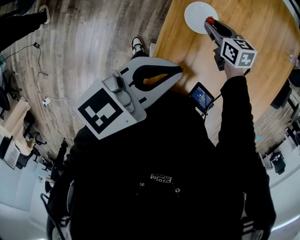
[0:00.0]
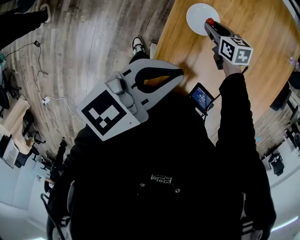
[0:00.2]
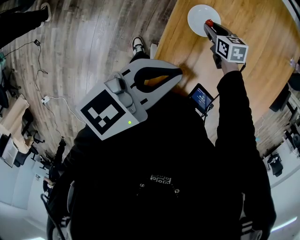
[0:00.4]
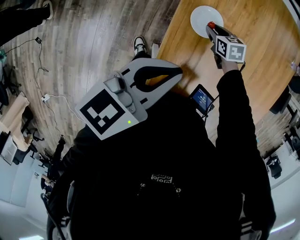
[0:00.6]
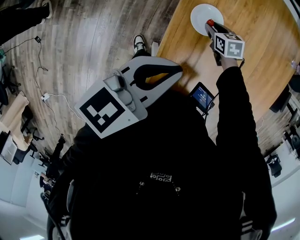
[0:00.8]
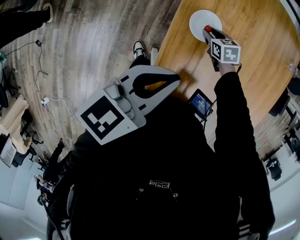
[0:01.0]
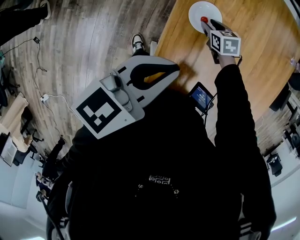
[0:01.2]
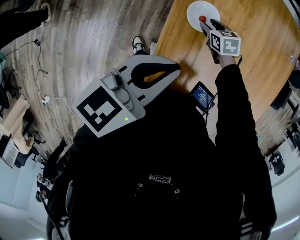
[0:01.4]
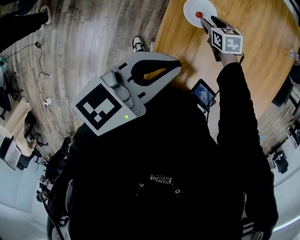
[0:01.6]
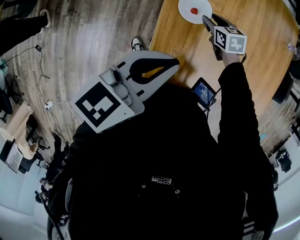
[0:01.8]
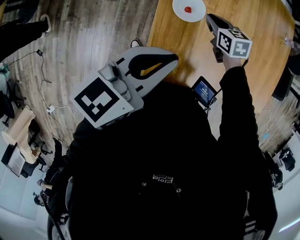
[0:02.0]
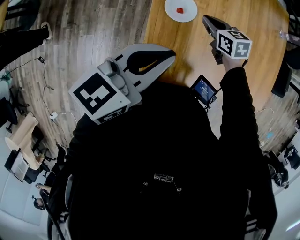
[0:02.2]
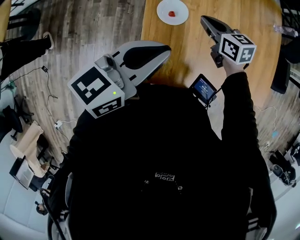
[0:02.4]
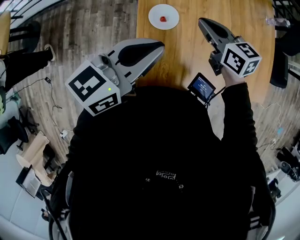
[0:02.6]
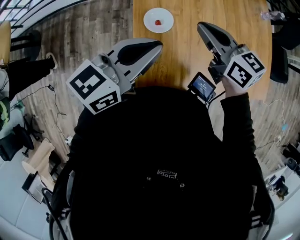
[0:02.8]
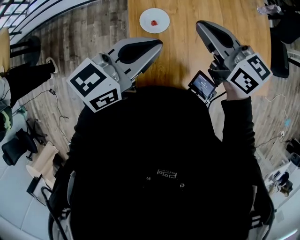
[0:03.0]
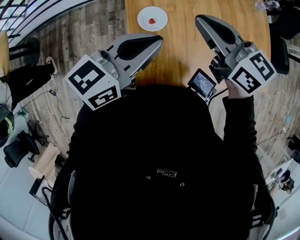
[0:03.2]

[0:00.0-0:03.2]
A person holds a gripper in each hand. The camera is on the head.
0:00.0 to 0:01.6: The right gripper is displaced downward by about 5 cm.
0:01.6 to 0:03.2: The left gripper moves some 5 cm, while the right gripper goes roughly 30 cm upward, tilts its fingers roughly 50 degrees upward, and closes its fingers.

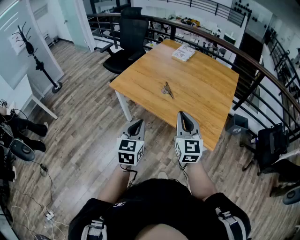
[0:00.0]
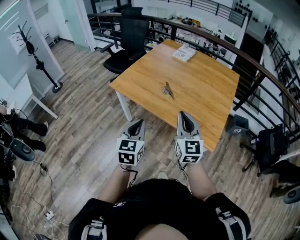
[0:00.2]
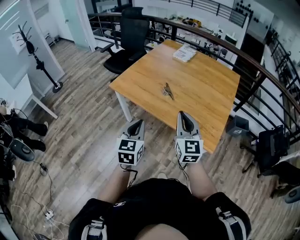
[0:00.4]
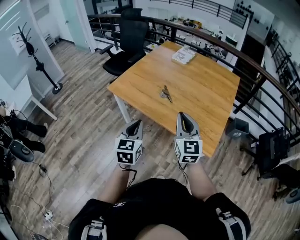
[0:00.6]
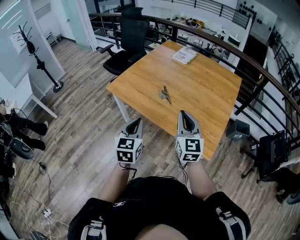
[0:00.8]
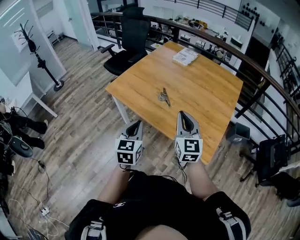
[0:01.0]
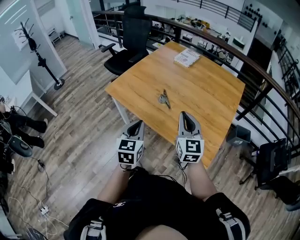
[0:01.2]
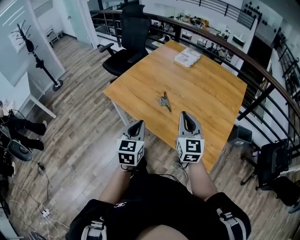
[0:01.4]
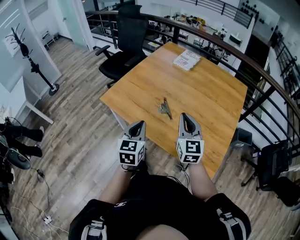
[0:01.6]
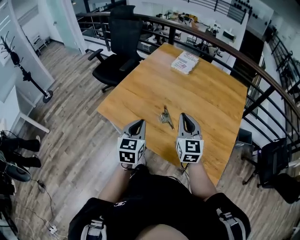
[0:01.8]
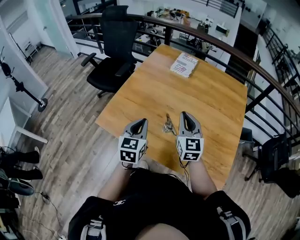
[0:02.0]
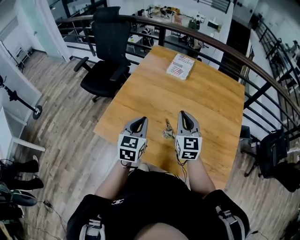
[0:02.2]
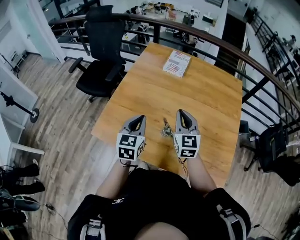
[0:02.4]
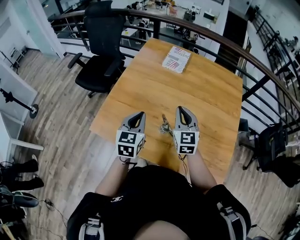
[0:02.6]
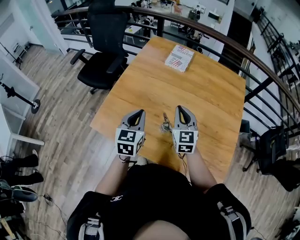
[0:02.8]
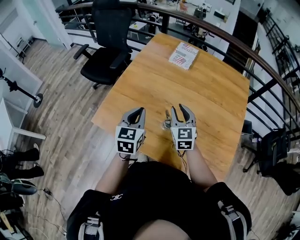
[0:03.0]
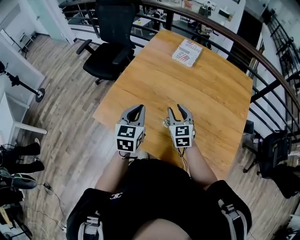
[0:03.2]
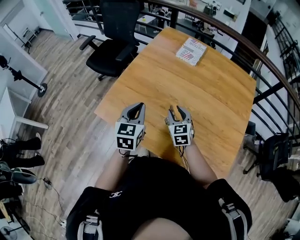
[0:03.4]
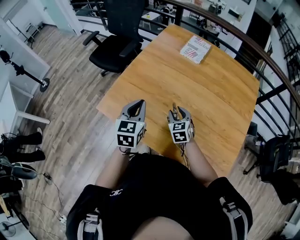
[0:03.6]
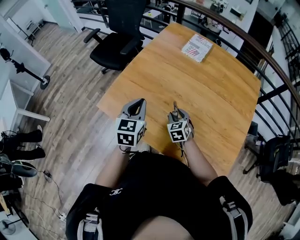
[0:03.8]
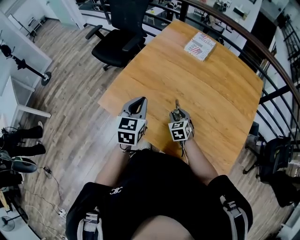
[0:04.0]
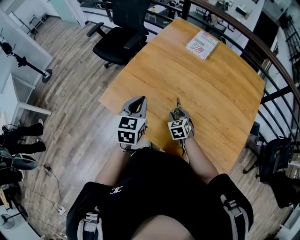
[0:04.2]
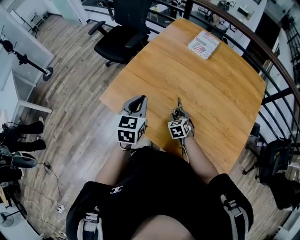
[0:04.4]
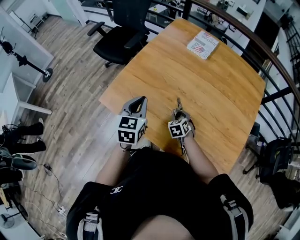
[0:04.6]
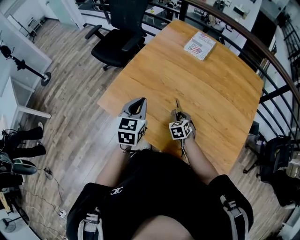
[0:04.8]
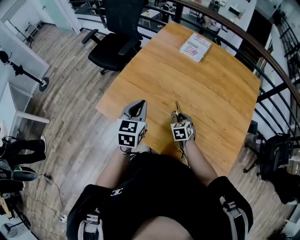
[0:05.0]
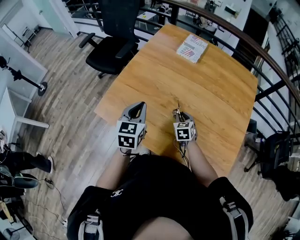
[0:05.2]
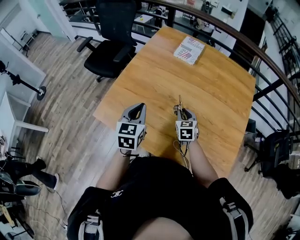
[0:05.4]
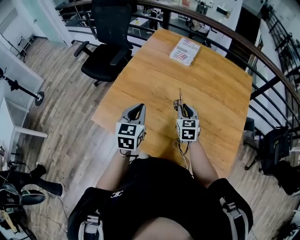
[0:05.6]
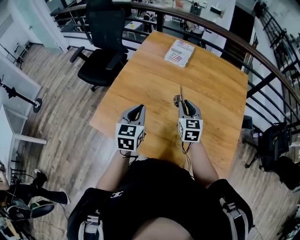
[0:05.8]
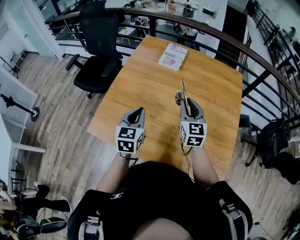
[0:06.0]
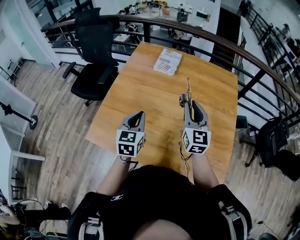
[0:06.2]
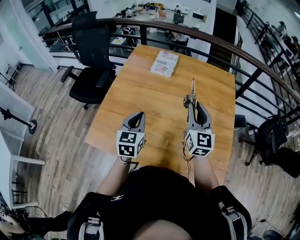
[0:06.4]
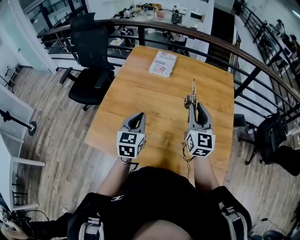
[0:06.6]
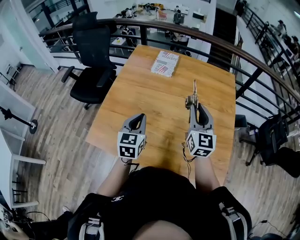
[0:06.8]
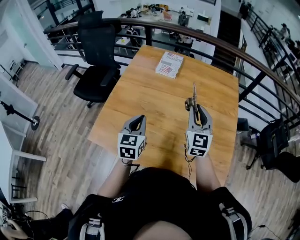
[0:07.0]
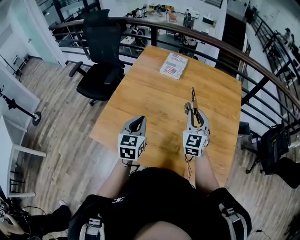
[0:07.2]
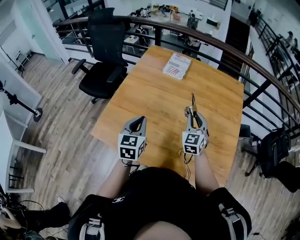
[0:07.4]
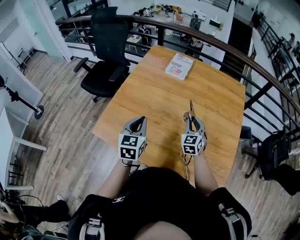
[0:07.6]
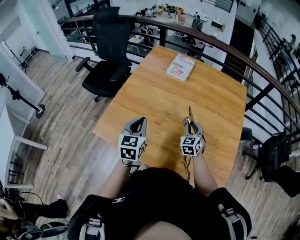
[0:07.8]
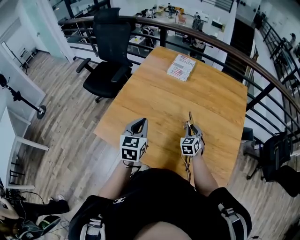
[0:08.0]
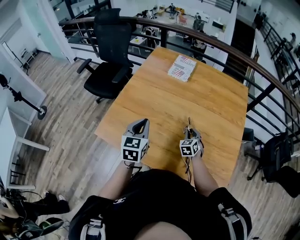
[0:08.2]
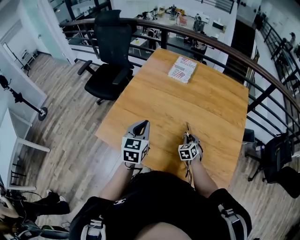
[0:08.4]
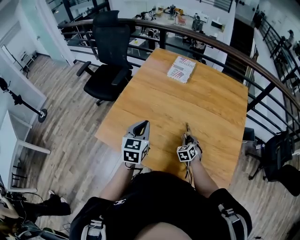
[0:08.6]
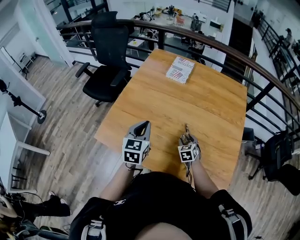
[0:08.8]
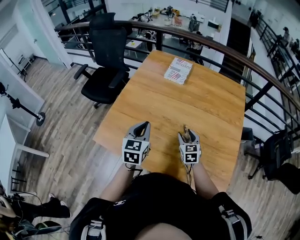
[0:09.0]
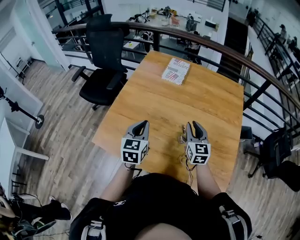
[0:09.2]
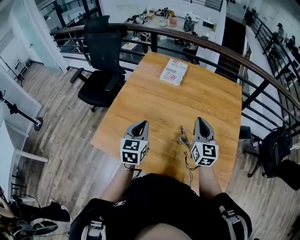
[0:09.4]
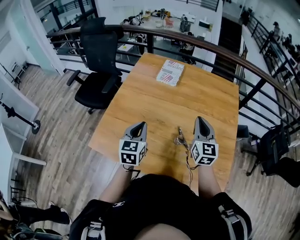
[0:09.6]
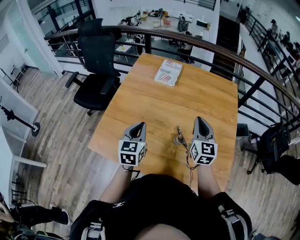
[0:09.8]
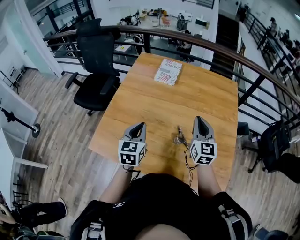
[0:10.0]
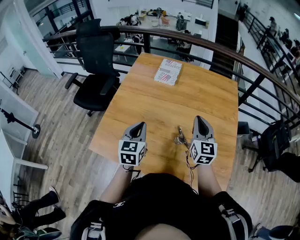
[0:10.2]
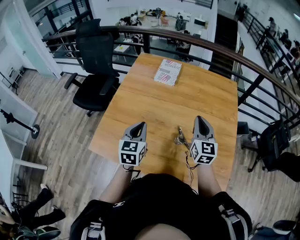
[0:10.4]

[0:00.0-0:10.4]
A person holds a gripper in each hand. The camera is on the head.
0:00.0 to 0:01.4: The grippers both shift forward by approximately 20 cm.
0:01.4 to 0:03.0: The right gripper moves forward and to the left, approximately 35 cm, and opens; the left gripper travels forward by approximately 35 cm.
0:03.0 to 0:04.4: The right gripper travels downward by approximately 20 cm, and angles its fingers downward, by roughly 30 degrees.
0:04.4 to 0:06.0: The left gripper shifts about 10 cm to the right. Meanwhile the right gripper shifts about 30 cm upward and to the right, tilts its fingers approximately 40 degrees upward, and closes its fingers.
0:06.0 to 0:07.4: The right gripper rotates roughly 20 degrees.
0:07.4 to 0:09.0: The right gripper heads downward, covering approximately 10 cm, swivels about 20 degrees, and opens its fingers.
0:09.0 to 0:10.4: The right gripper goes some 20 cm upward, changes its angle by about 30 degrees, and closes.

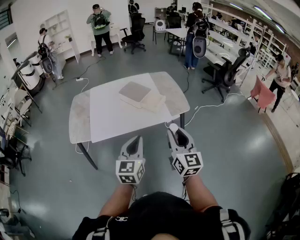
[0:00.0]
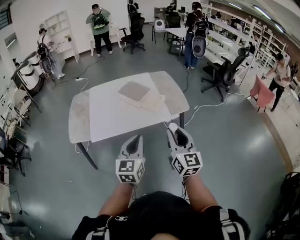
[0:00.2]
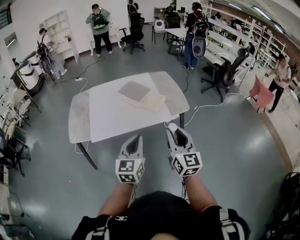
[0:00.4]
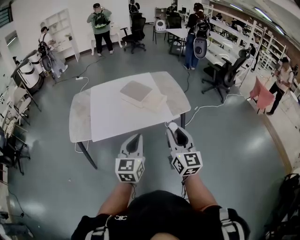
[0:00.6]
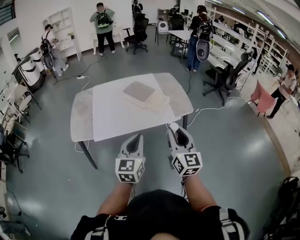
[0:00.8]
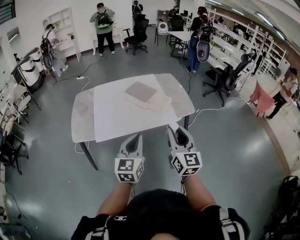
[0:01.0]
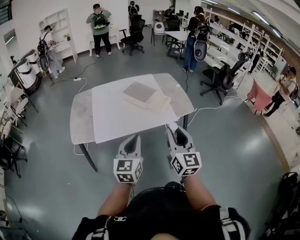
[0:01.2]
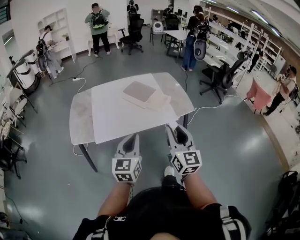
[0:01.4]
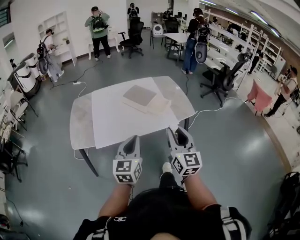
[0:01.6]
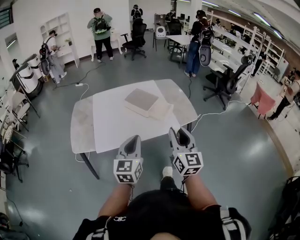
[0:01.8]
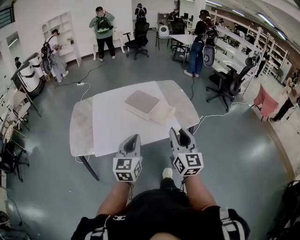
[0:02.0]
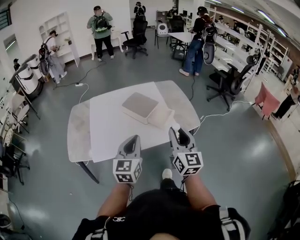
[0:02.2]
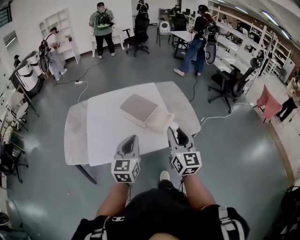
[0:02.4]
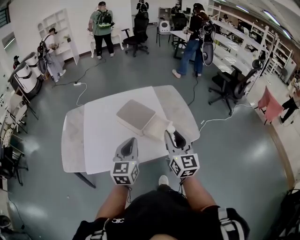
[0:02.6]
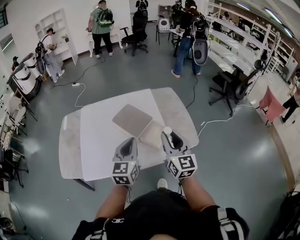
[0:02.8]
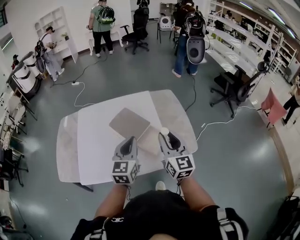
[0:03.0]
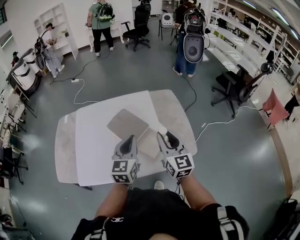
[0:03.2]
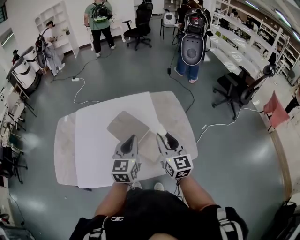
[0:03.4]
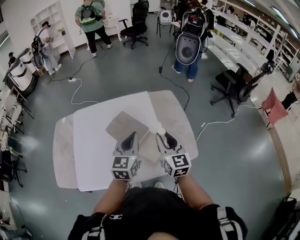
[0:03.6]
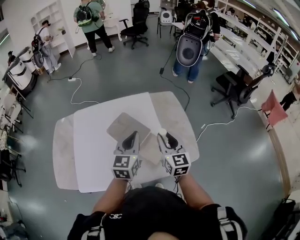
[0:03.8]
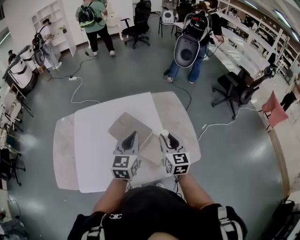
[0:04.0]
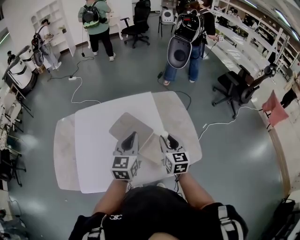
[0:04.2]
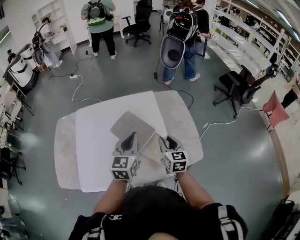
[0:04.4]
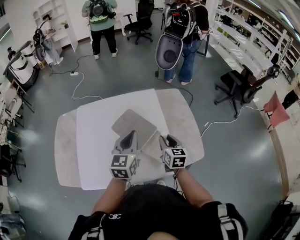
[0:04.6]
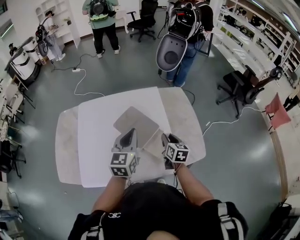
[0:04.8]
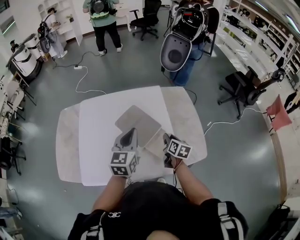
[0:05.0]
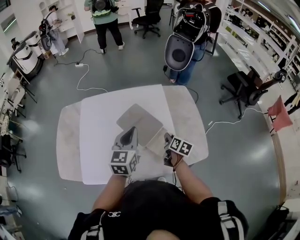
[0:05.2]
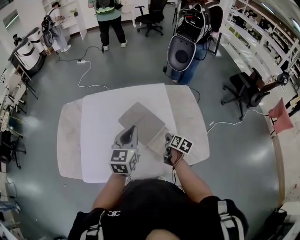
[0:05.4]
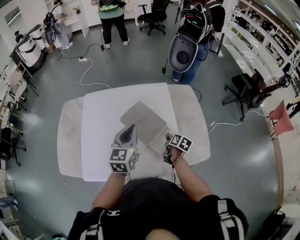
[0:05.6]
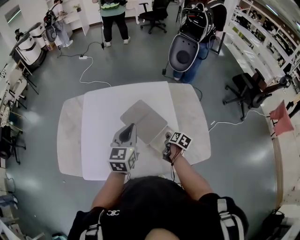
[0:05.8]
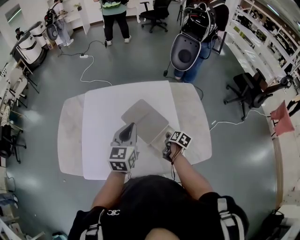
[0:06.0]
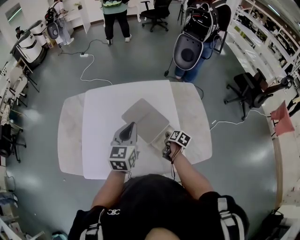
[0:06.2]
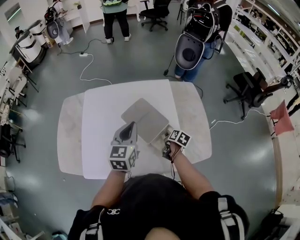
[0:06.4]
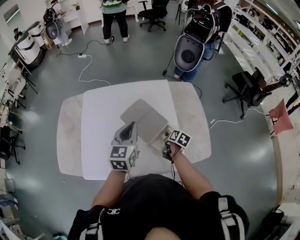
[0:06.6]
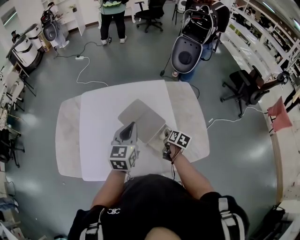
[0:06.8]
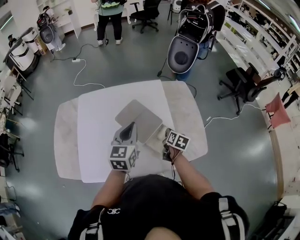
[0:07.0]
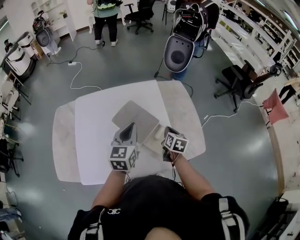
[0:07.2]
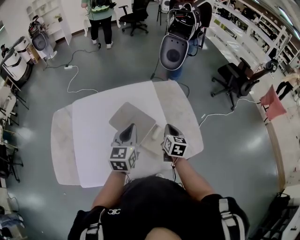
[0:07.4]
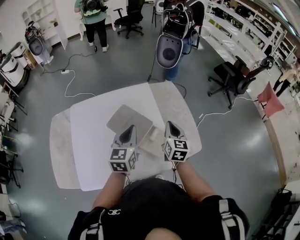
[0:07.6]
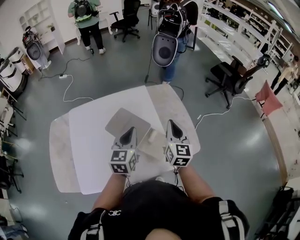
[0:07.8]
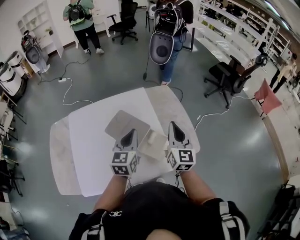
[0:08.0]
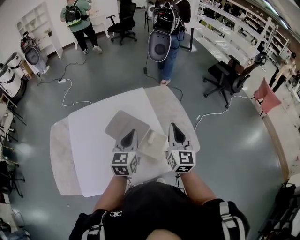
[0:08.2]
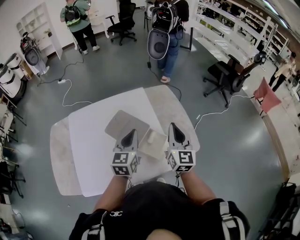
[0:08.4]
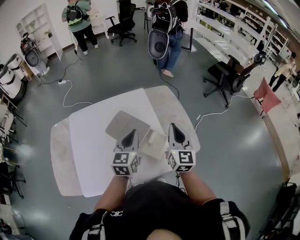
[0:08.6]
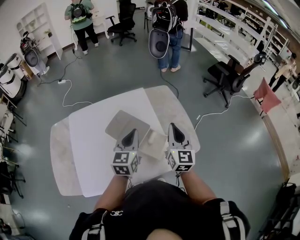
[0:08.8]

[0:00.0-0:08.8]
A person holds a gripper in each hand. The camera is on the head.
0:00.0 to 0:01.4: Both grippers travel together to the left, about 10 cm.
0:01.4 to 0:03.0: The two grippers travel together, forward, about 40 cm.
0:03.0 to 0:04.4: The left gripper travels forward by some 10 cm; the right gripper moves forward and downward, about 15 cm, and swivels roughly 20 degrees.
0:04.4 to 0:05.8: The right gripper travels downward by approximately 20 cm, and swivels approximately 50 degrees, while the left gripper is displaced to the left by about 5 cm.
0:05.8 to 0:07.4: The right gripper shifts approximately 15 cm upward, turns by some 40 degrees, and closes.
0:07.4 to 0:08.8: The right gripper travels upward by some 15 cm, and changes its angle by some 30 degrees.

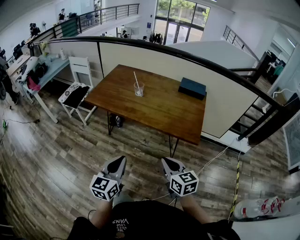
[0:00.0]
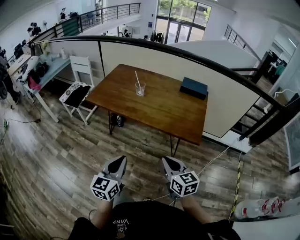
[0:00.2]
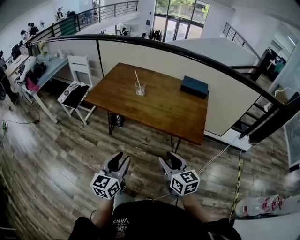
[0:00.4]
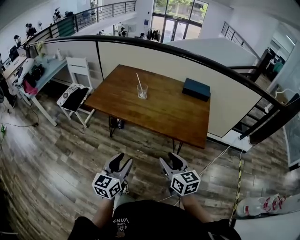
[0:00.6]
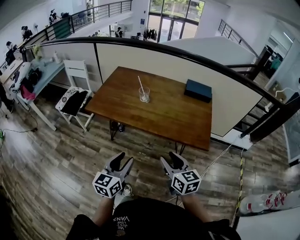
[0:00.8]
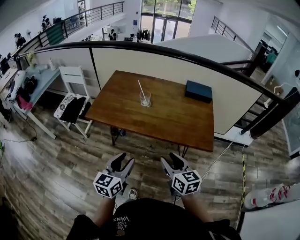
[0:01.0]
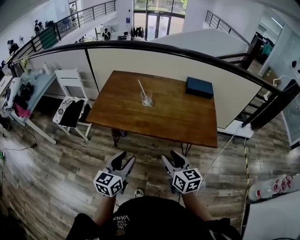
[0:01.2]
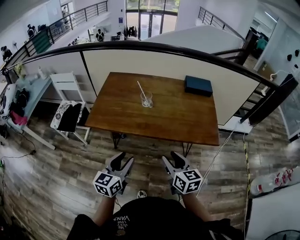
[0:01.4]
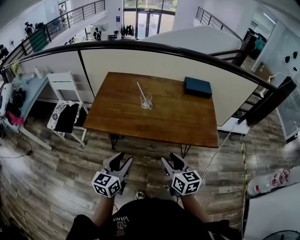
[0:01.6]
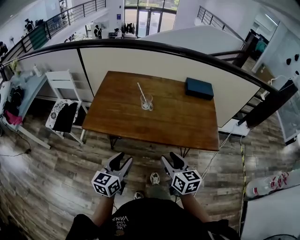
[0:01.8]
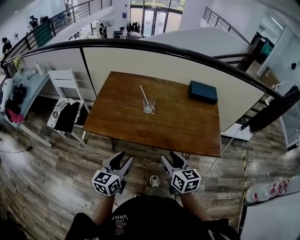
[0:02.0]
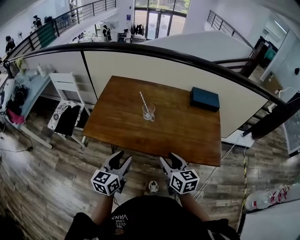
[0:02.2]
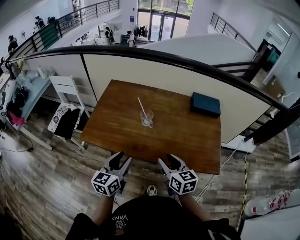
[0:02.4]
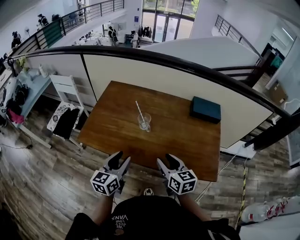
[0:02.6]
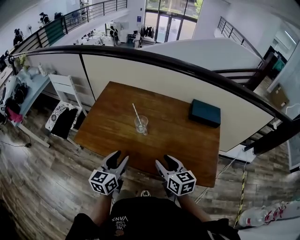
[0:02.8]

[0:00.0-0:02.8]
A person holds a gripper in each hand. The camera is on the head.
0:00.0 to 0:01.4: The right gripper heads to the left and forward, covering about 20 cm, and opens up. The left gripper travels forward and to the left by roughly 25 cm, and opens up.
0:01.4 to 0:02.8: Both grippers travel together forward, about 20 cm.
